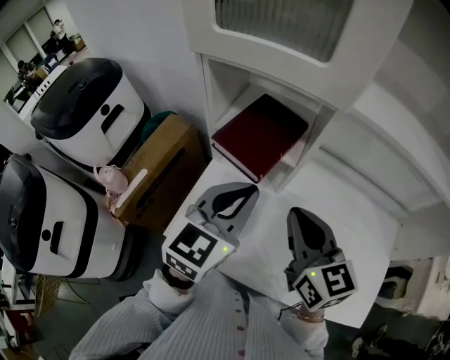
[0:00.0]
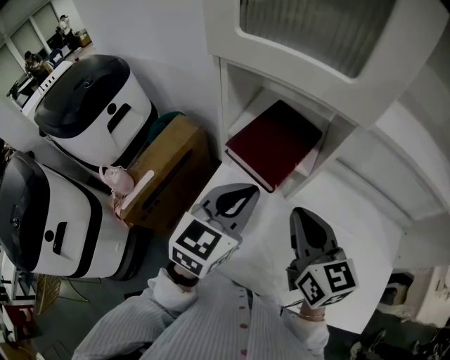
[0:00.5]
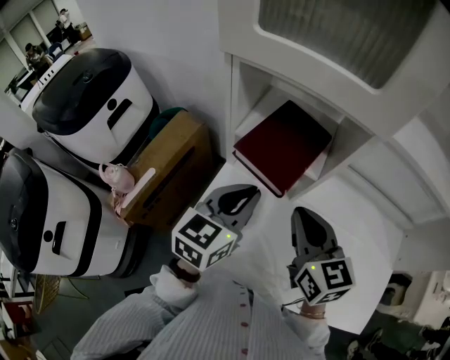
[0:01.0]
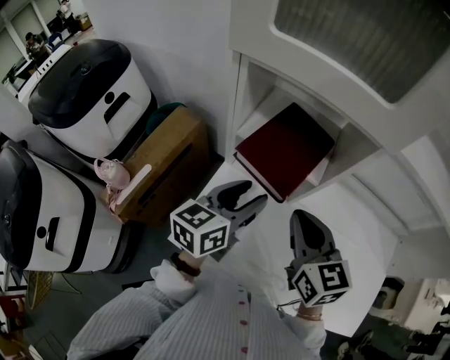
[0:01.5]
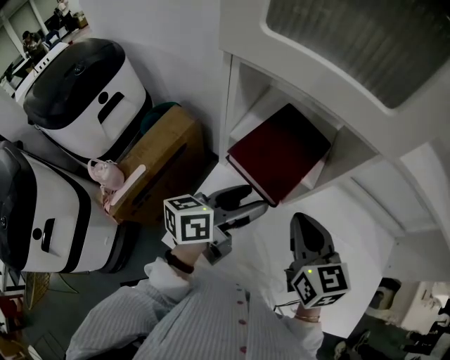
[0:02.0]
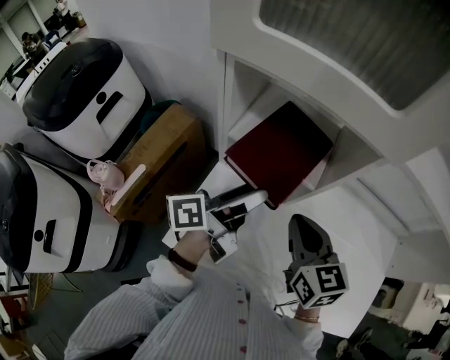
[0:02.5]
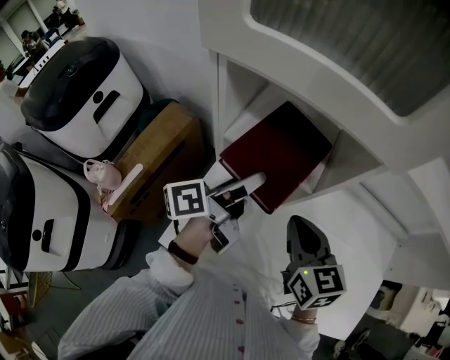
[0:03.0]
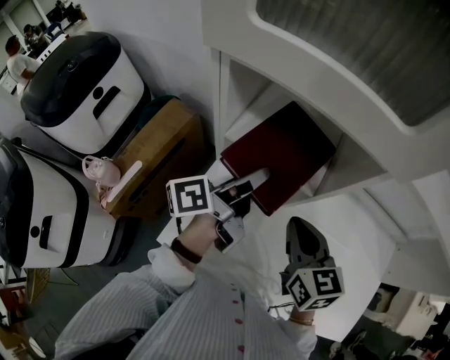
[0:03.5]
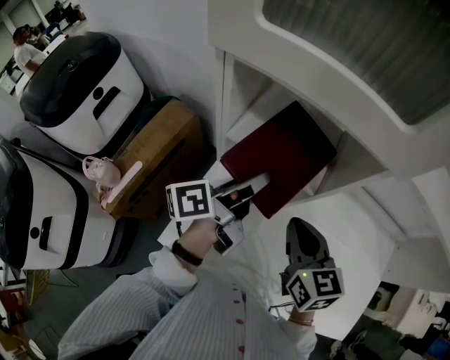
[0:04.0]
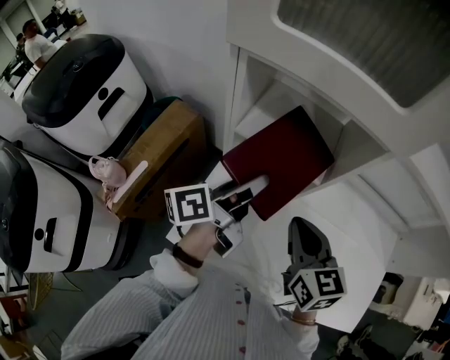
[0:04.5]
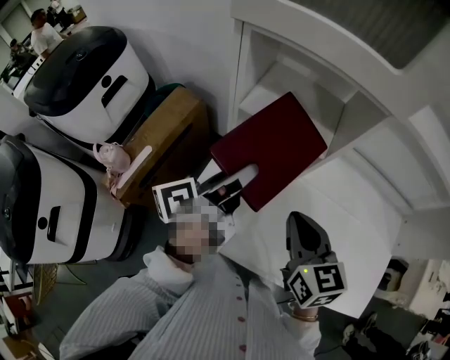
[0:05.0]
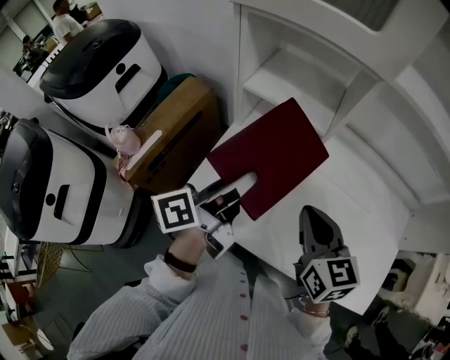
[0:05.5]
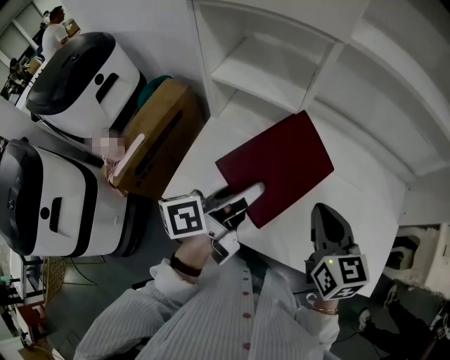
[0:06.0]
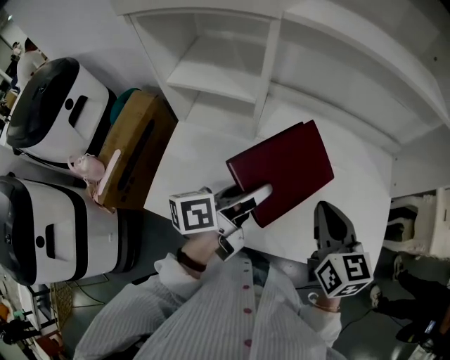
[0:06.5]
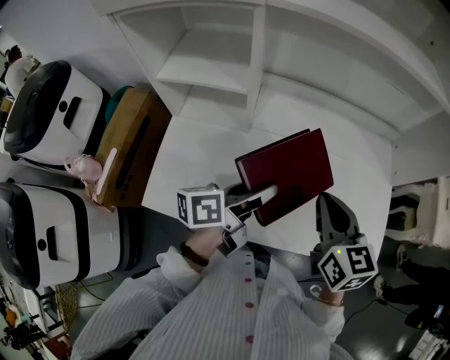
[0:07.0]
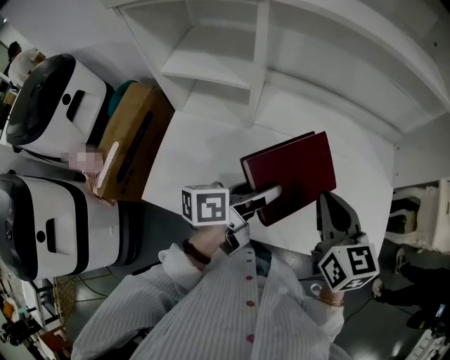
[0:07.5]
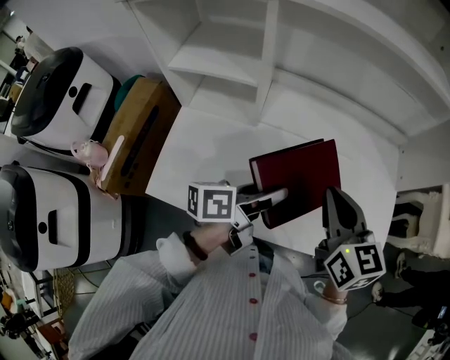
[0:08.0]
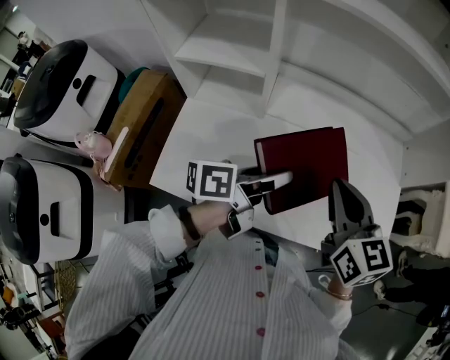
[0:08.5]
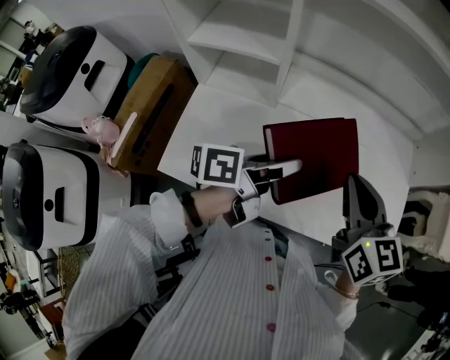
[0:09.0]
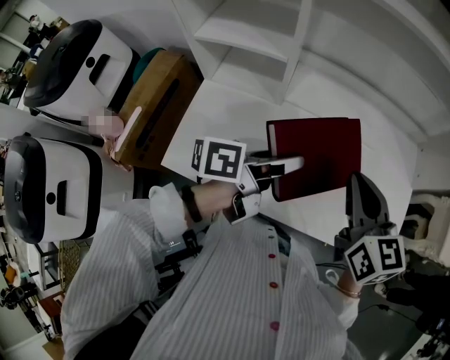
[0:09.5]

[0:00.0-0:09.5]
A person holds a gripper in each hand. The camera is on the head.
0:00.0 to 0:02.0: The left gripper moves downward and forward, some 10 cm, twists some 50 degrees counterclockwise, seen from behind, and opens up. Meanwhile the right gripper heads forward and downward, covering approximately 10 cm.
0:02.0 to 0:04.0: The left gripper goes approximately 5 cm forward, and rotates approximately 30 degrees.
0:04.0 to 0:05.5: The grippers both shift backward by about 15 cm.
0:05.5 to 0:07.5: The grippers both shift to the right by approximately 20 cm. The left gripper changes its angle by some 30 degrees.
0:07.5 to 0:09.5: The grippers make only small movements.

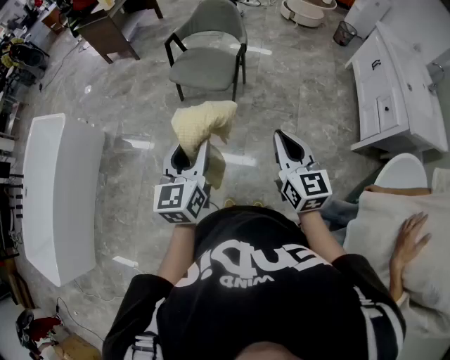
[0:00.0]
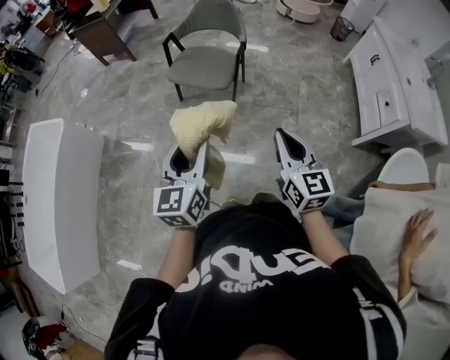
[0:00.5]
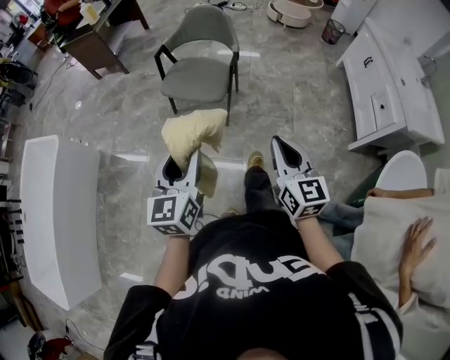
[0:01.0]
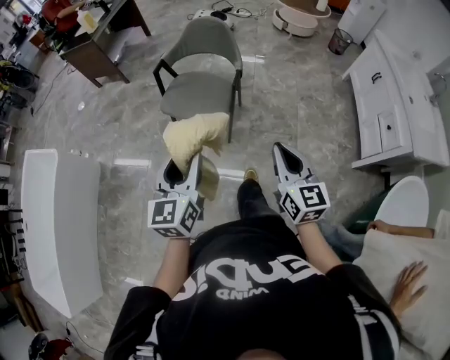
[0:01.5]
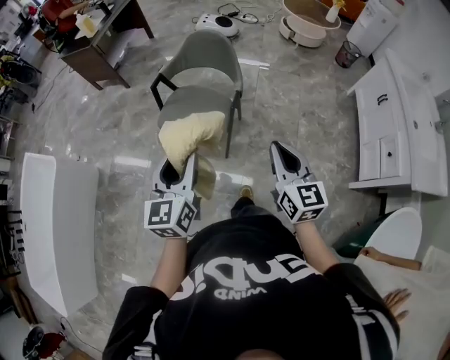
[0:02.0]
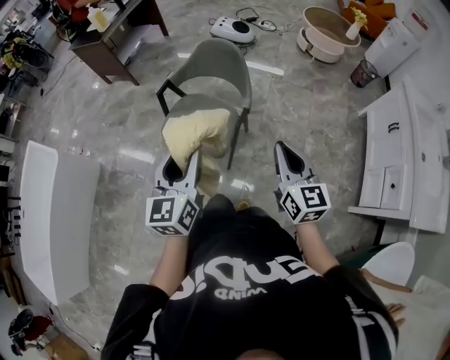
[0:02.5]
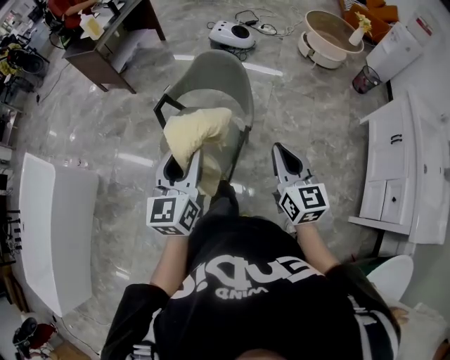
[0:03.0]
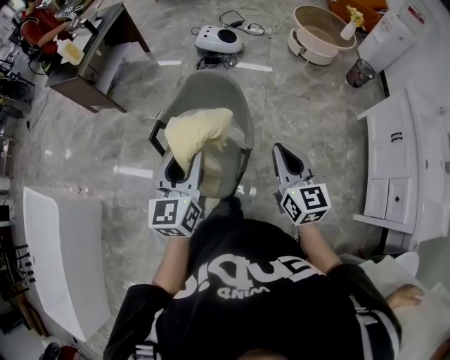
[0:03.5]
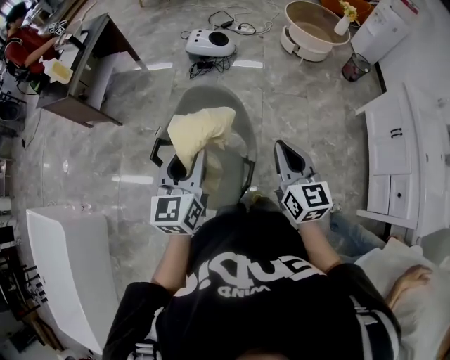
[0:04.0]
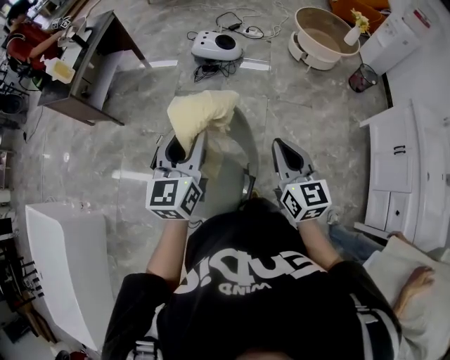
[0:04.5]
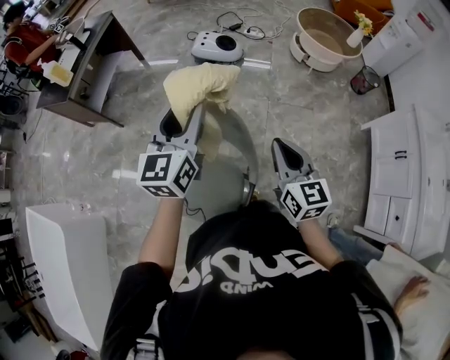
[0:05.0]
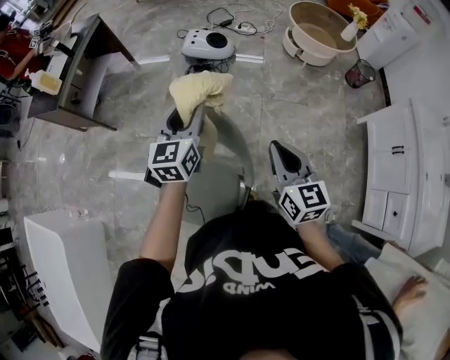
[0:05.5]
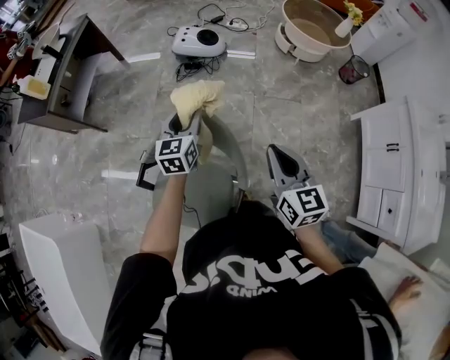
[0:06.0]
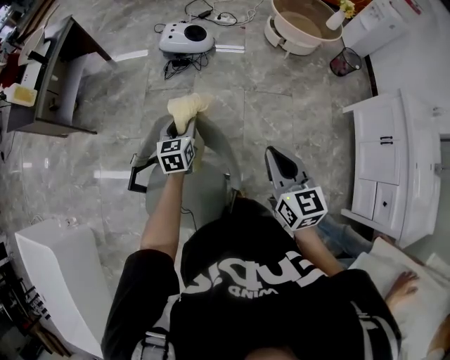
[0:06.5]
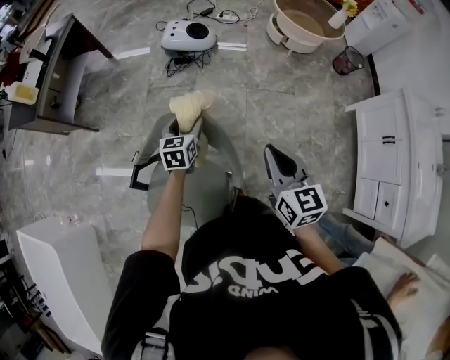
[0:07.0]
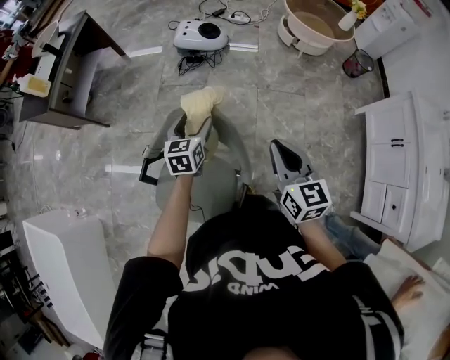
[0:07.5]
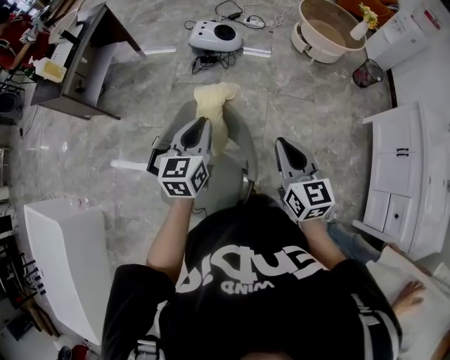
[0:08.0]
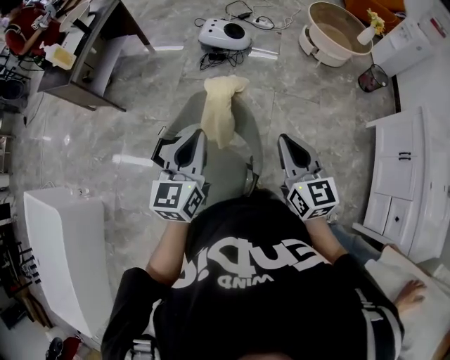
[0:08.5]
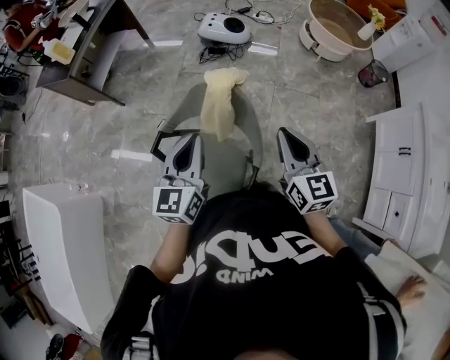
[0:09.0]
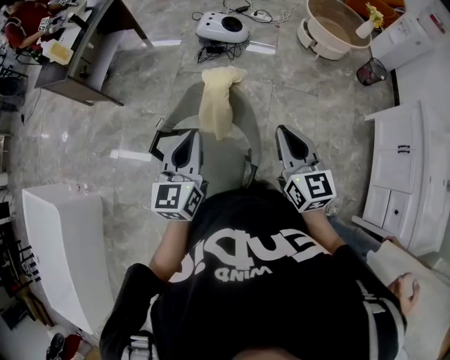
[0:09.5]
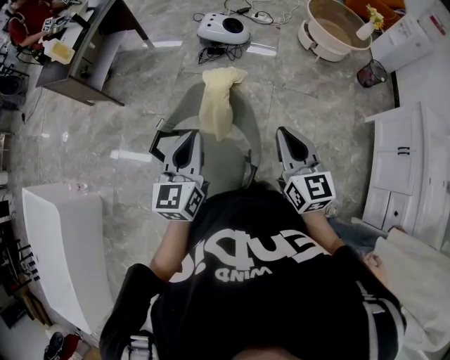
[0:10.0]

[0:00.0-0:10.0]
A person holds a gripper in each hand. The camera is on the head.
0:00.0 to 0:02.0: Both grippers move forward, about 30 cm.
0:02.0 to 0:04.0: The two grippers travel together, forward, roughly 40 cm.
0:04.0 to 0:06.0: The left gripper moves forward and downward, some 30 cm, while the right gripper heads forward, covering some 15 cm.
0:06.0 to 0:08.0: The left gripper goes some 10 cm backward and upward, and closes up.
0:08.0 to 0:10.0: The left gripper goes approximately 10 cm backward.

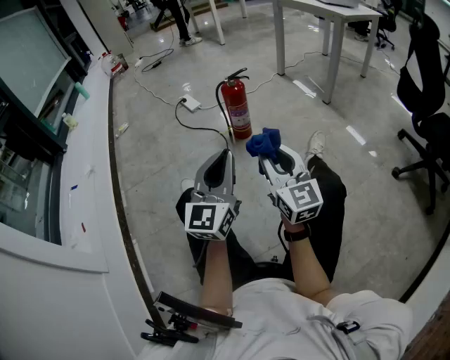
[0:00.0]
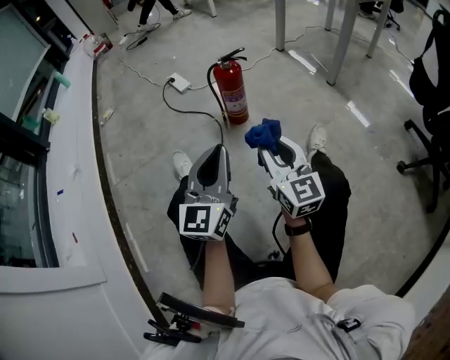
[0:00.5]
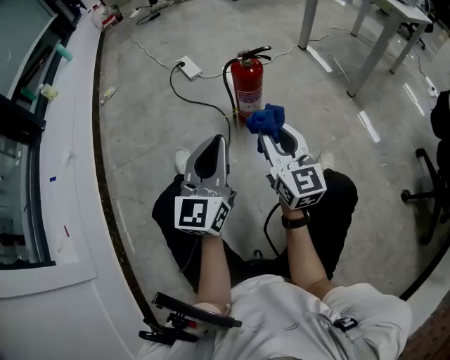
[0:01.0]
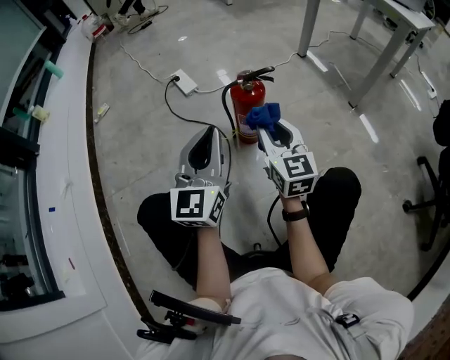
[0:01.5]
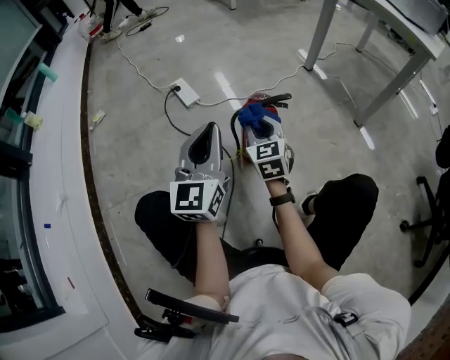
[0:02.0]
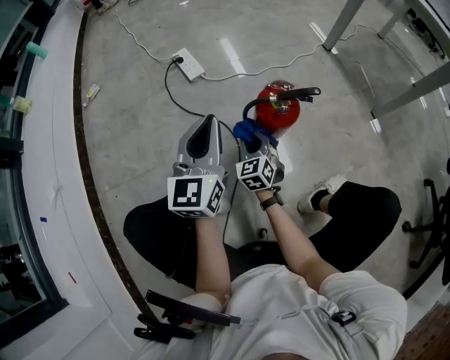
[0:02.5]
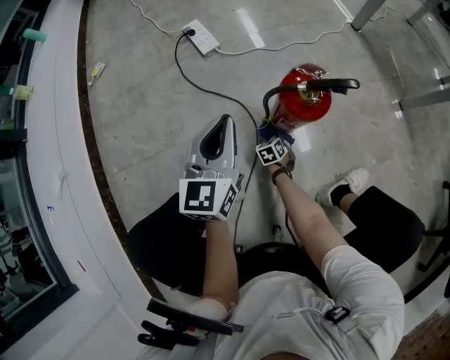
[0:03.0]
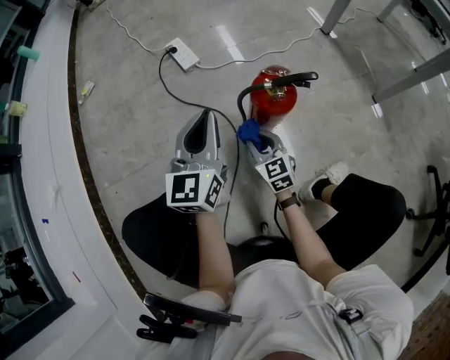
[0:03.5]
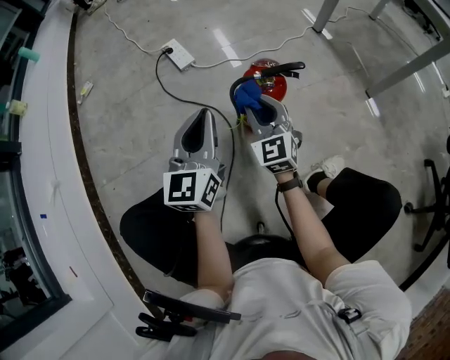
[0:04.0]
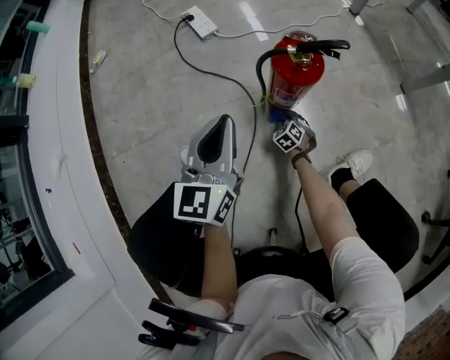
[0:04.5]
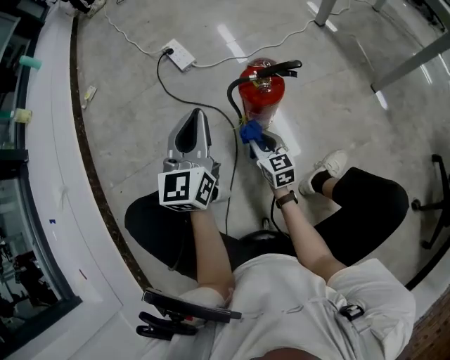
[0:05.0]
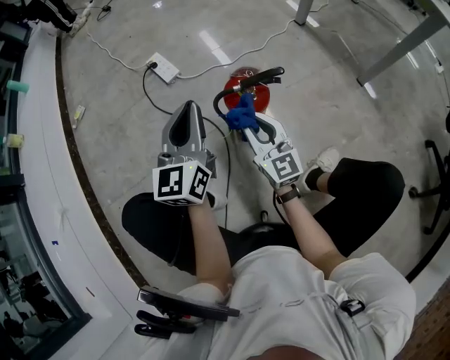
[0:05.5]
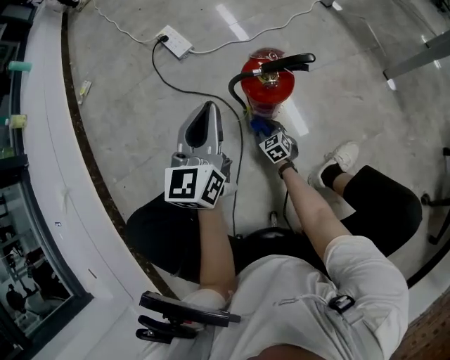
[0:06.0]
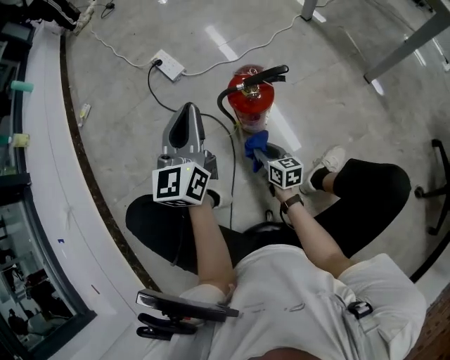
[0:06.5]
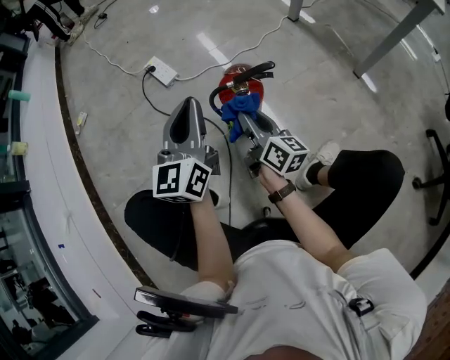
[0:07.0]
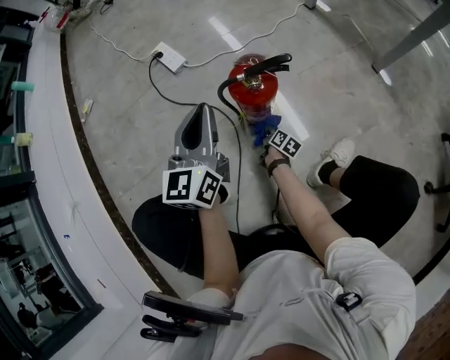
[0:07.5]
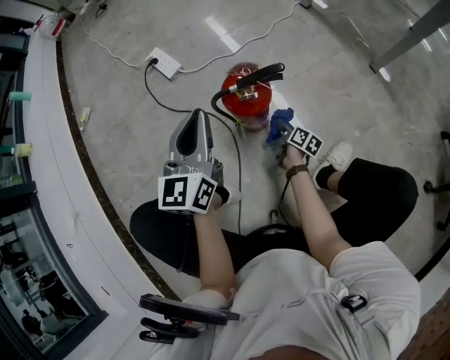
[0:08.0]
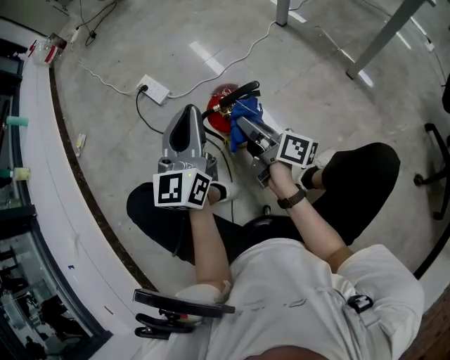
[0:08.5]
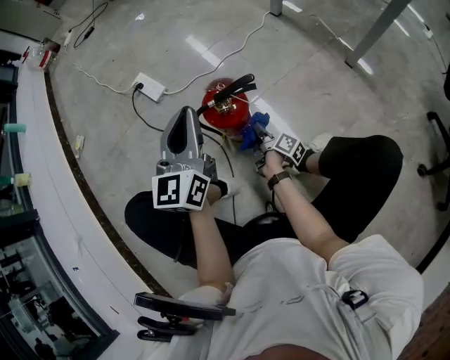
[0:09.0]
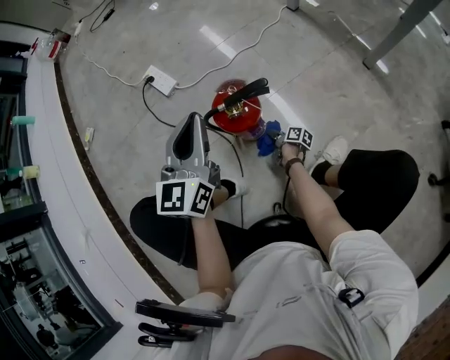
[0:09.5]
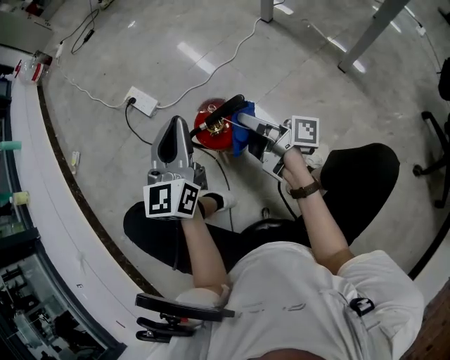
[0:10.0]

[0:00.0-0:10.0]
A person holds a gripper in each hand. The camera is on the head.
0:00.0 to 0:02.0: The pair of grippers is taken forward, approximately 50 cm. The right gripper swivels some 30 degrees.
0:02.0 to 0:04.0: The right gripper goes downward and returns, approximately 40 cm each way. Meanwhile the left gripper heads downward, covering roughly 5 cm.
0:04.0 to 0:06.0: The left gripper ends up about 5 cm from where it was, while the right gripper goes up and down, approximately 40 cm each way, reversing 2 times, and angles its fingers downward, by about 30 degrees.
0:06.0 to 0:08.0: The right gripper goes up and down, some 35 cm each way, reversing 2 times, and twists about 80 degrees clockwise, seen from behind.
0:08.0 to 0:10.0: The right gripper swings up and down, roughly 40 cm each way, with 2 reversals, and points its fingers approximately 40 degrees further upward; the left gripper travels forward by roughly 5 cm.
